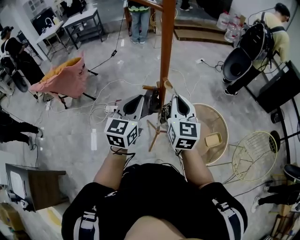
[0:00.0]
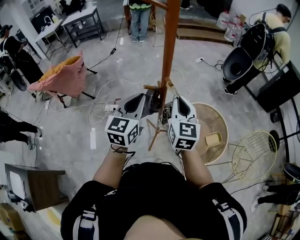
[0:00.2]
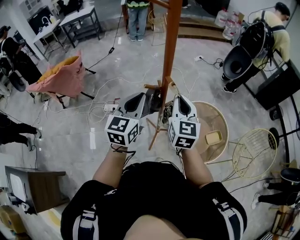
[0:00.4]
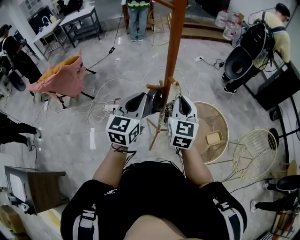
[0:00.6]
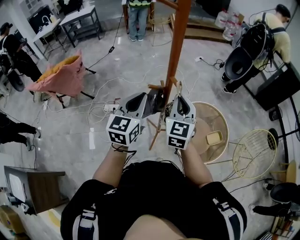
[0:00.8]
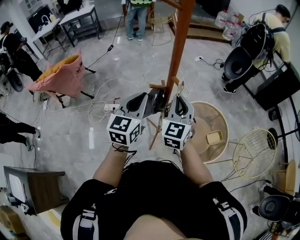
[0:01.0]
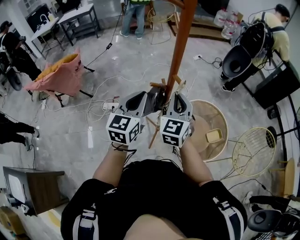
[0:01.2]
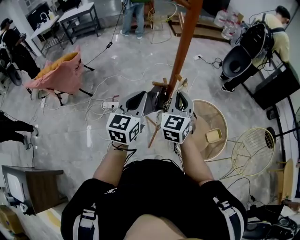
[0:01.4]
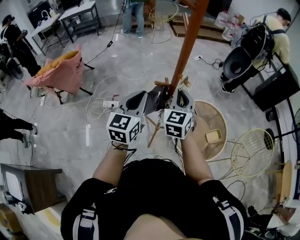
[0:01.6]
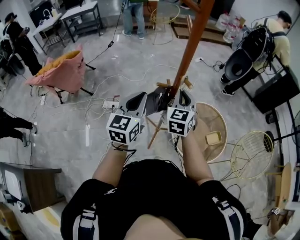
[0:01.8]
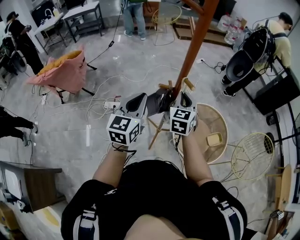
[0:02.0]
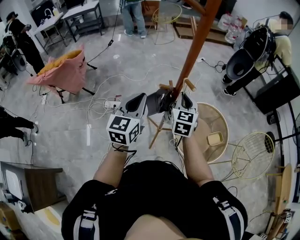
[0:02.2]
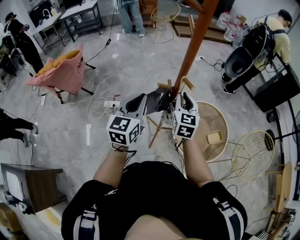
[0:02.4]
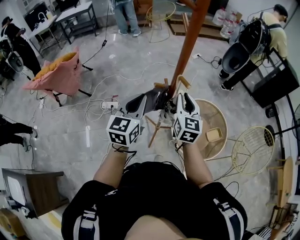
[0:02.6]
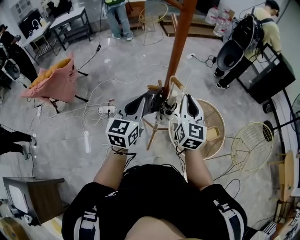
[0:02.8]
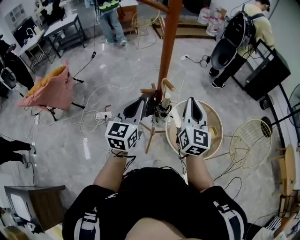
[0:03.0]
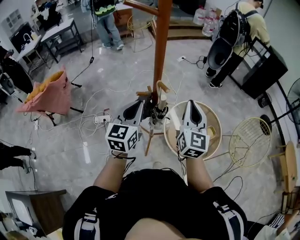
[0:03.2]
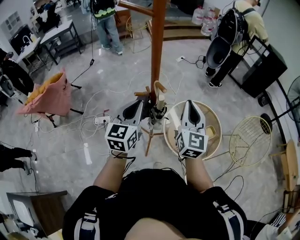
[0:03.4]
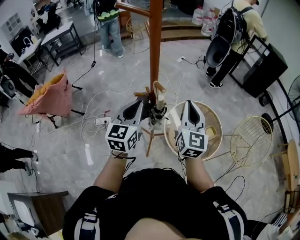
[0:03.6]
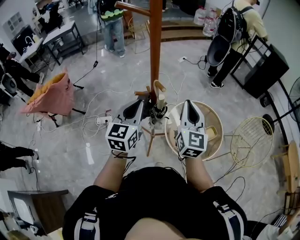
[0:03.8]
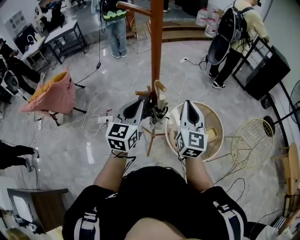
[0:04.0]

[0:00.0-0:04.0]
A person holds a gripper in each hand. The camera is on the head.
0:00.0 to 0:01.4: The grippers both shift to the left by roughly 5 cm. The right gripper changes its angle by some 30 degrees.
0:01.4 to 0:02.6: The right gripper changes its angle by some 20 degrees.
0:02.6 to 0:04.0: The right gripper moves to the right and upward, approximately 15 cm. The left gripper shifts approximately 10 cm to the right.

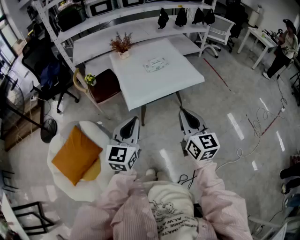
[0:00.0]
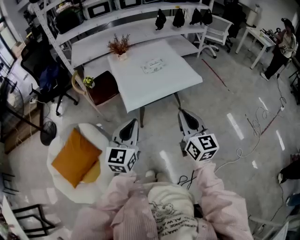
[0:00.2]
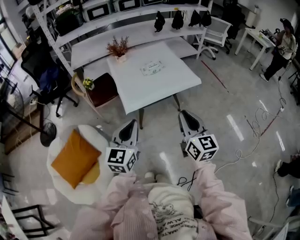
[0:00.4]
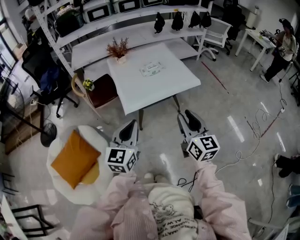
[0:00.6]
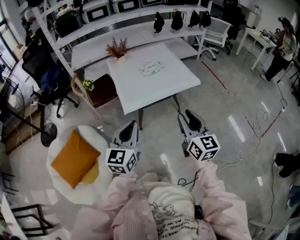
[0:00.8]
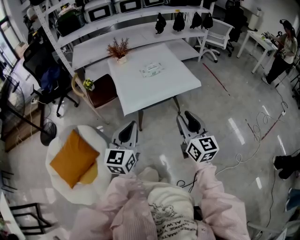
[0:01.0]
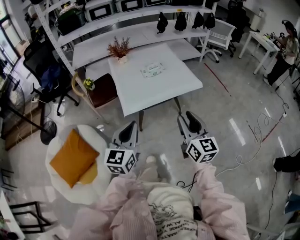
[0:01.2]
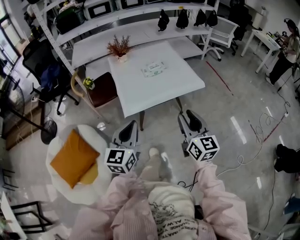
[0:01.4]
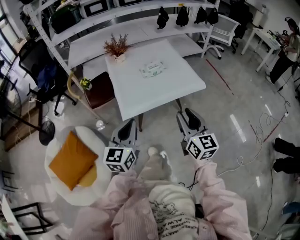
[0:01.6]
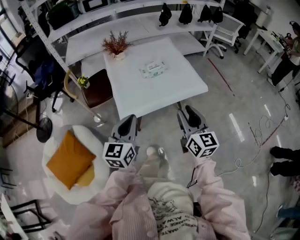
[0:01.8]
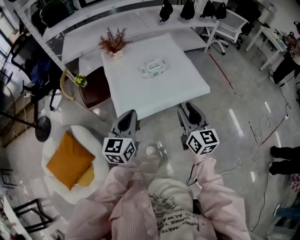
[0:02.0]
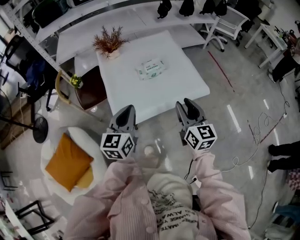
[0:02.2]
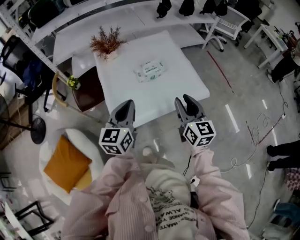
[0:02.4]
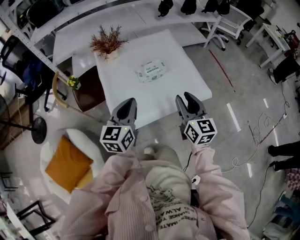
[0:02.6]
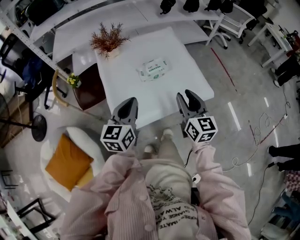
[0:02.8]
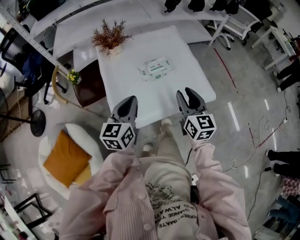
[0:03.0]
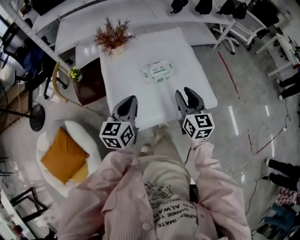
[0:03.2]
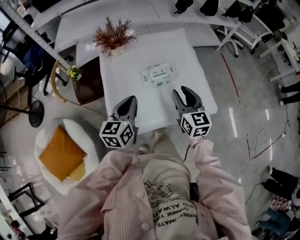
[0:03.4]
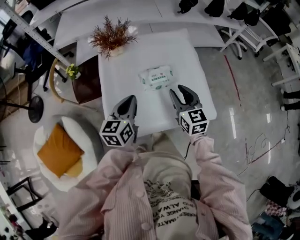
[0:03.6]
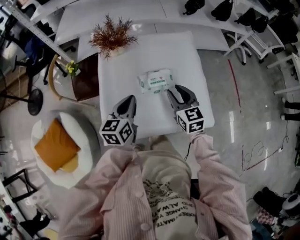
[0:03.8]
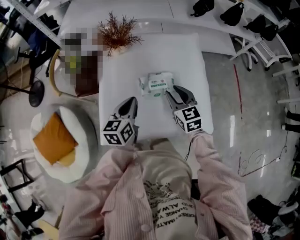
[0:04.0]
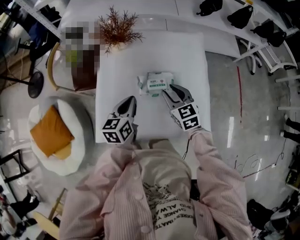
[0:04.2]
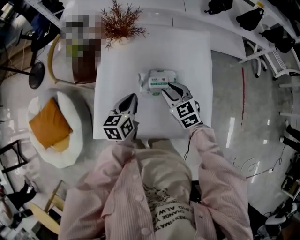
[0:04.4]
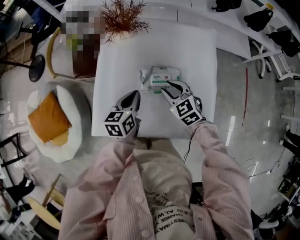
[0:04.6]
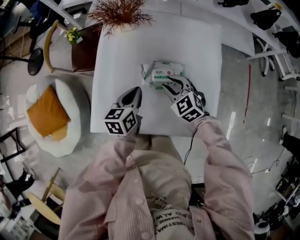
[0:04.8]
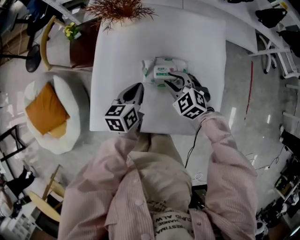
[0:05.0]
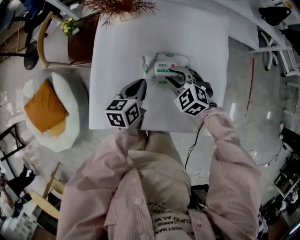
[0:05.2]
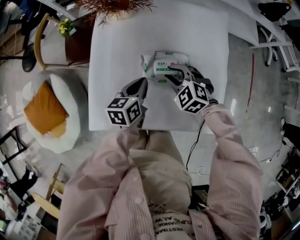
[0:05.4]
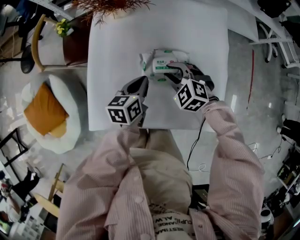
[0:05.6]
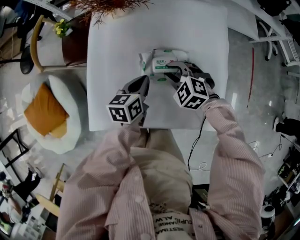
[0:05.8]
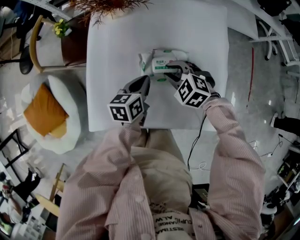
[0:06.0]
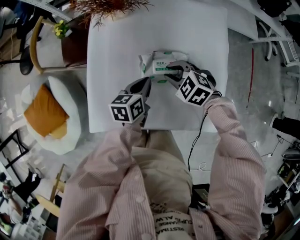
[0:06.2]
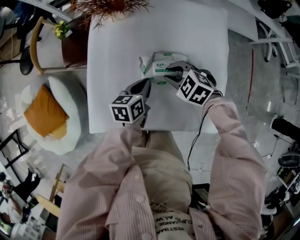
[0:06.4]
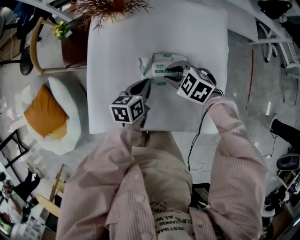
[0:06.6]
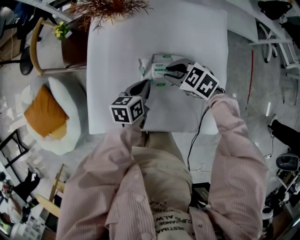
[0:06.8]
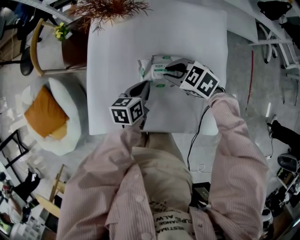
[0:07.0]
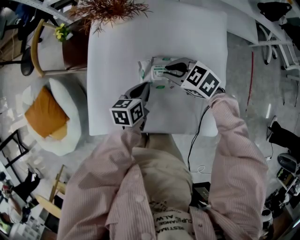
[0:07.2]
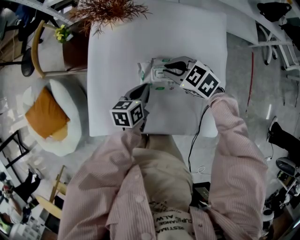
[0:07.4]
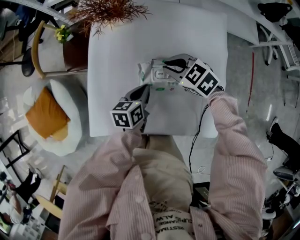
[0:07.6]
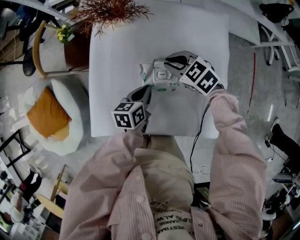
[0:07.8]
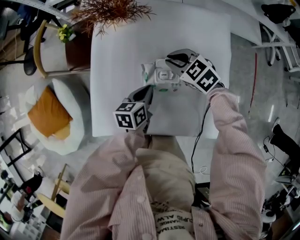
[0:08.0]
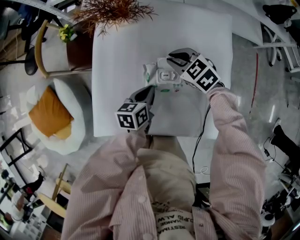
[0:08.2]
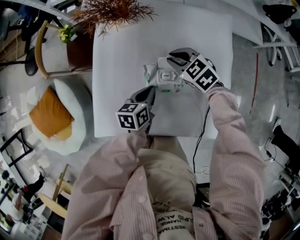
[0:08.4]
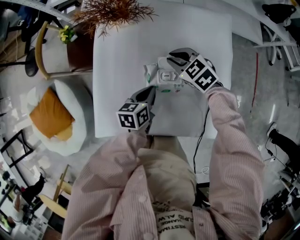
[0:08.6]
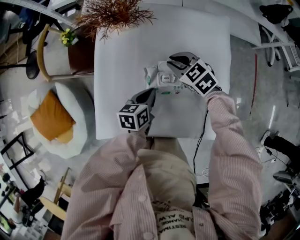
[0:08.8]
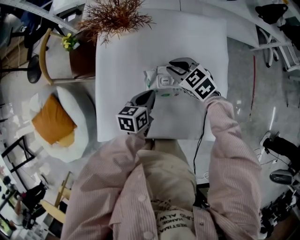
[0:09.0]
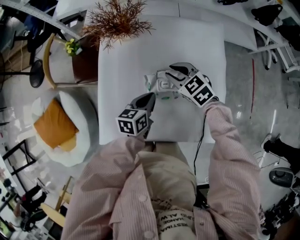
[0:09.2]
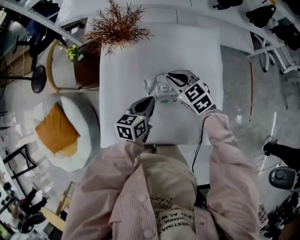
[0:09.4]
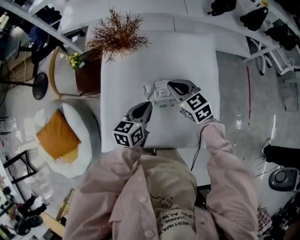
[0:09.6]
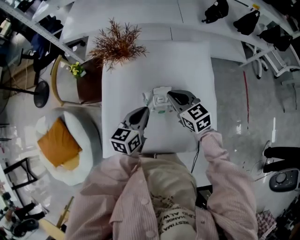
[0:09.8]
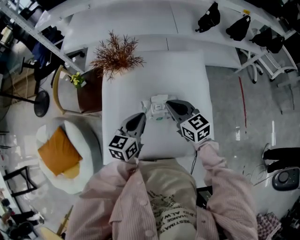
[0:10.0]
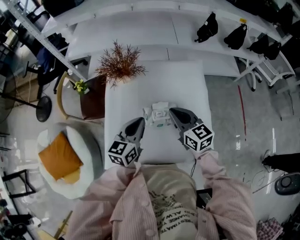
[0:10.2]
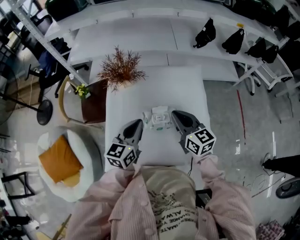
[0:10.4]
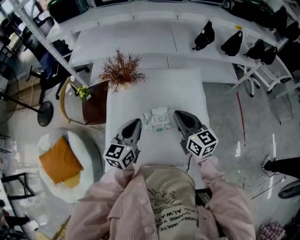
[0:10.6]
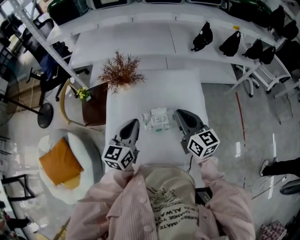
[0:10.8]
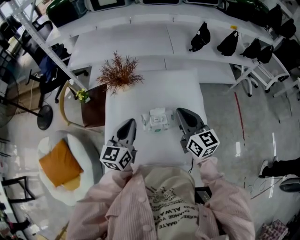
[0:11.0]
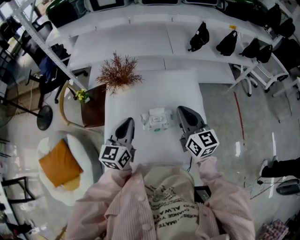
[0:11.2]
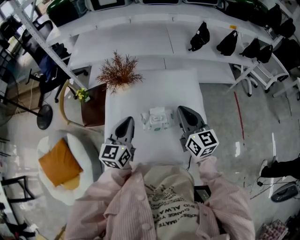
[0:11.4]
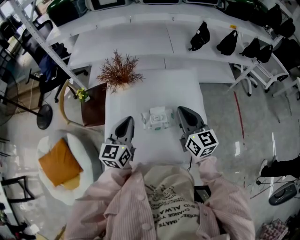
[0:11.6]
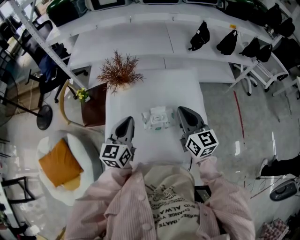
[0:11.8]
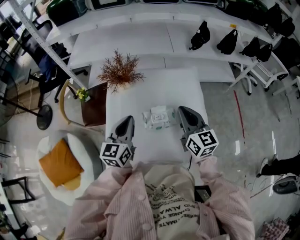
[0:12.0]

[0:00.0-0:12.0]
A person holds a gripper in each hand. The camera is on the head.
0:00.0 to 0:01.6: The grippers both shift forward by roughly 10 cm. The right gripper opens its fingers.
0:01.6 to 0:03.0: Both grippers move forward, roughly 30 cm.
0:03.0 to 0:04.4: The left gripper shifts by some 20 cm, and swivels roughly 30 degrees. Meanwhile the right gripper changes place by approximately 25 cm, and turns by roughly 50 degrees.
0:04.4 to 0:06.0: The grippers both shift downward by about 10 cm. The right gripper turns by roughly 40 degrees.
0:06.0 to 0:07.6: The right gripper shifts about 5 cm forward.
0:07.6 to 0:09.0: The grippers make only small movements.
0:09.0 to 0:10.4: The left gripper shifts about 20 cm upward, and rotates roughly 30 degrees, while the right gripper heads upward and backward, covering about 20 cm, and tilts its fingers approximately 30 degrees upward.
0:10.4 to 0:12.0: The right gripper moves approximately 5 cm.

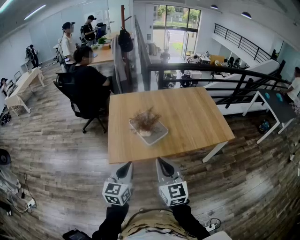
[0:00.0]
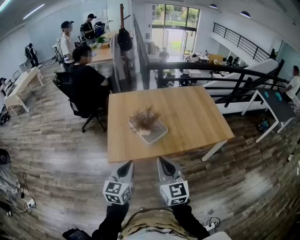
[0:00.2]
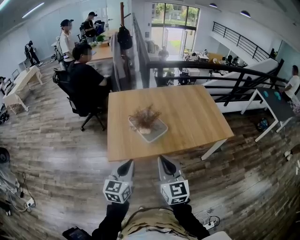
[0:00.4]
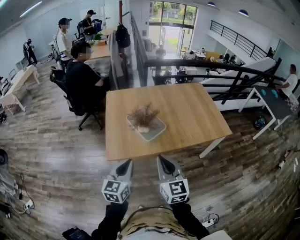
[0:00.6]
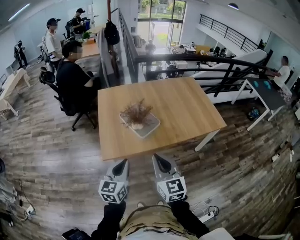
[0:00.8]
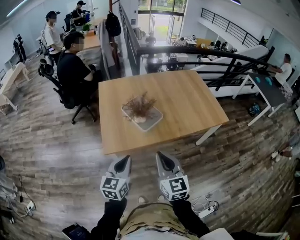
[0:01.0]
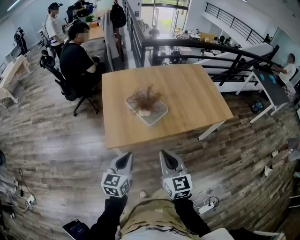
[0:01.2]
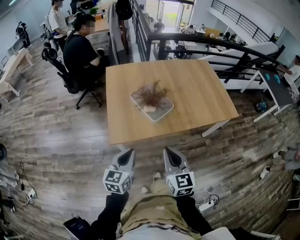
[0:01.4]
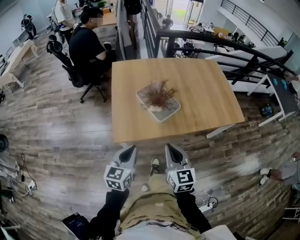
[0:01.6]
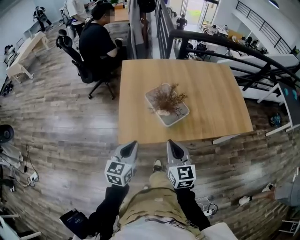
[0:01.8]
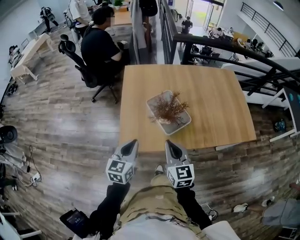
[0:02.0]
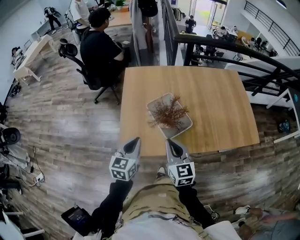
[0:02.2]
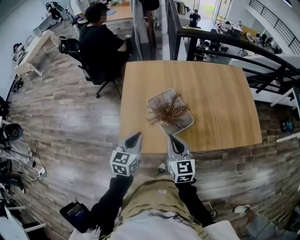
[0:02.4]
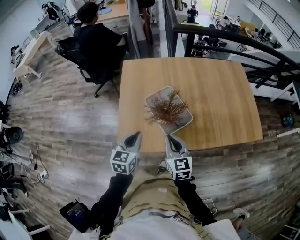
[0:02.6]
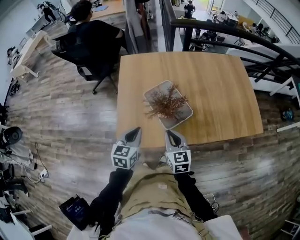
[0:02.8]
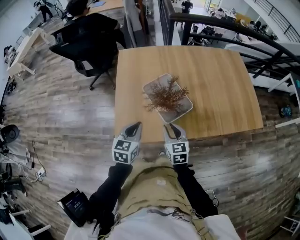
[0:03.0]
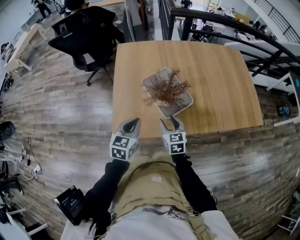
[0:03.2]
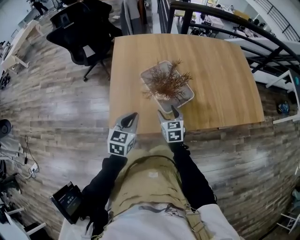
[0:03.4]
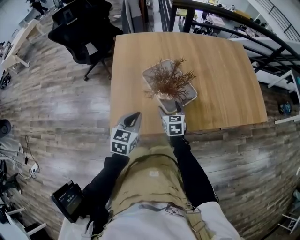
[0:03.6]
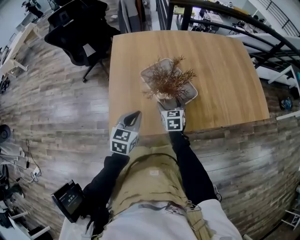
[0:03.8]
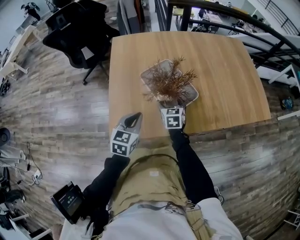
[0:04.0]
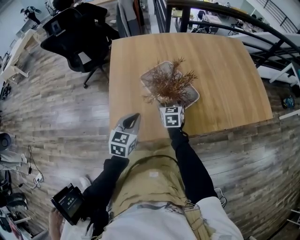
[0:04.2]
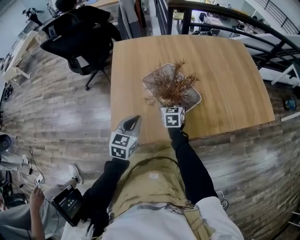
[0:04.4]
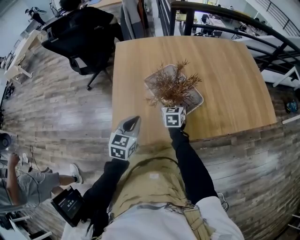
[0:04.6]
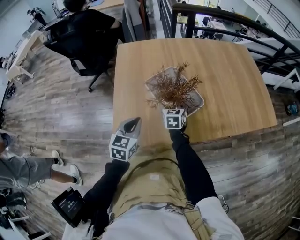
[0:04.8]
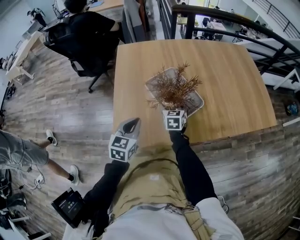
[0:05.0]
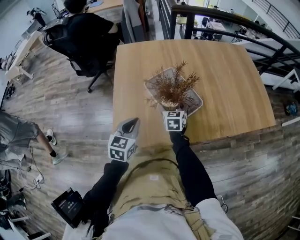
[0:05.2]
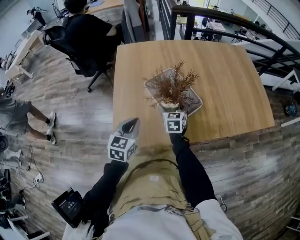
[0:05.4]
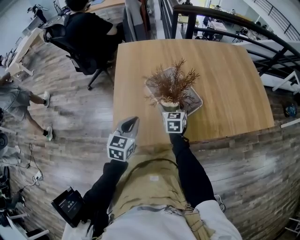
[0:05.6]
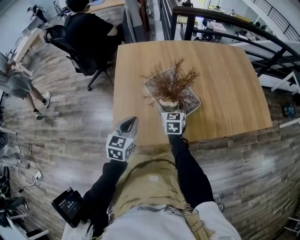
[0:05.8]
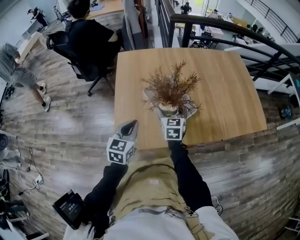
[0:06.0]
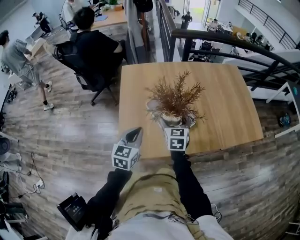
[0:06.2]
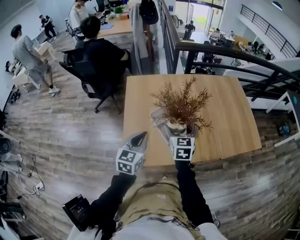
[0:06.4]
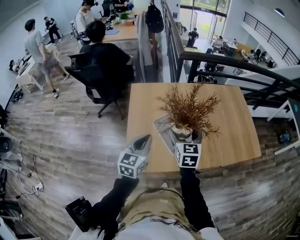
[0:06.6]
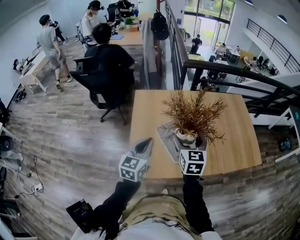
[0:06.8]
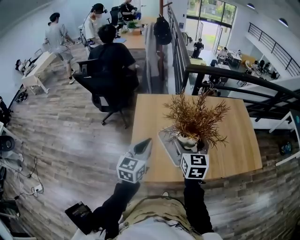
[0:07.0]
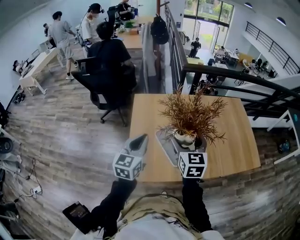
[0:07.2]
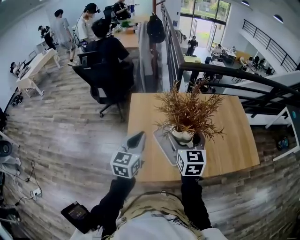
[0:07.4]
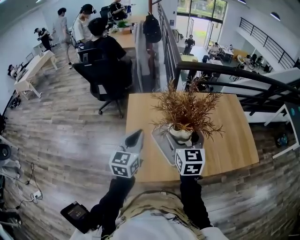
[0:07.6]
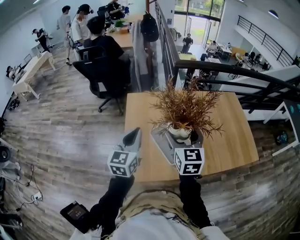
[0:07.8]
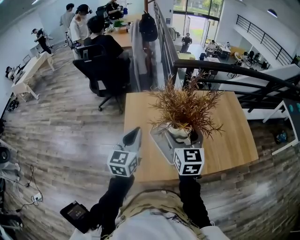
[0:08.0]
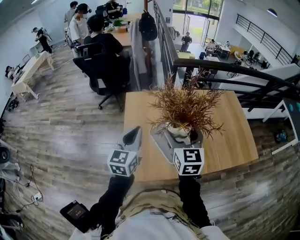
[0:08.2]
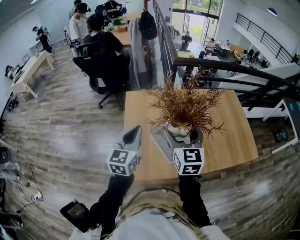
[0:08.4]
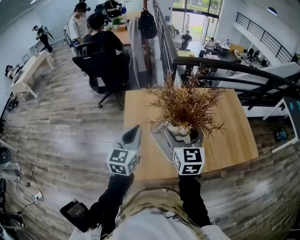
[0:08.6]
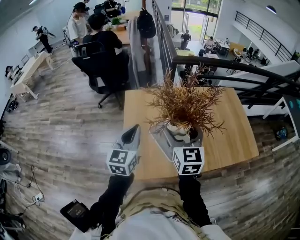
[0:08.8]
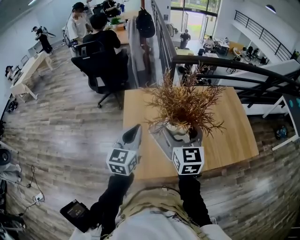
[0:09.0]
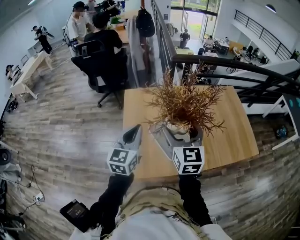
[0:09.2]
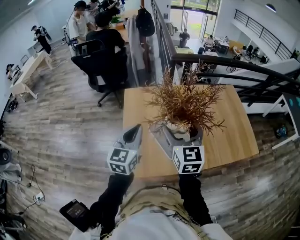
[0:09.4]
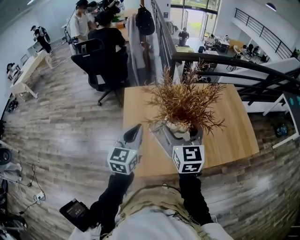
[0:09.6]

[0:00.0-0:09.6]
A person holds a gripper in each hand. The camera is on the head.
0:00.0 to 0:01.6: The left gripper is displaced downward, to the left and forward by about 15 cm; the right gripper goes roughly 15 cm downward, forward and to the left.
0:01.6 to 0:03.2: Both grippers move forward and downward, some 25 cm. The right gripper opens.
0:03.2 to 0:04.8: The right gripper is displaced forward and downward by roughly 20 cm, and opens. The left gripper goes approximately 10 cm downward and forward.
0:04.8 to 0:06.4: The two grippers go about 25 cm upward.
0:06.4 to 0:08.0: The left gripper travels upward and forward by roughly 15 cm. The right gripper goes roughly 15 cm upward.
0:08.0 to 0:09.6: The grippers stay close to where they were, moving slightly.
